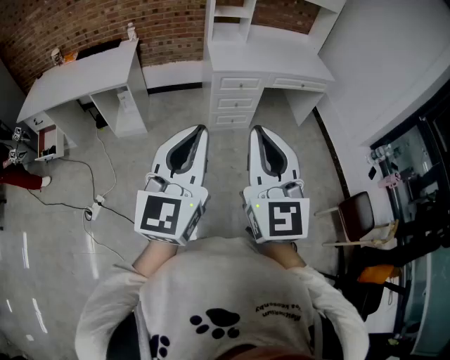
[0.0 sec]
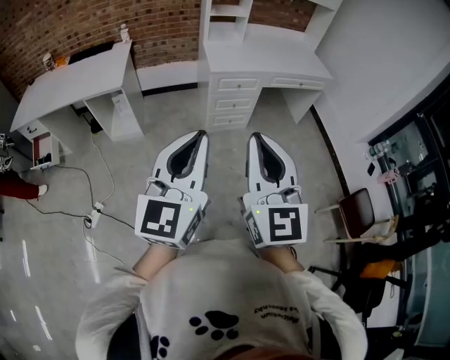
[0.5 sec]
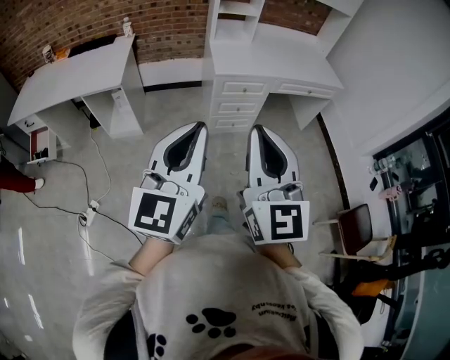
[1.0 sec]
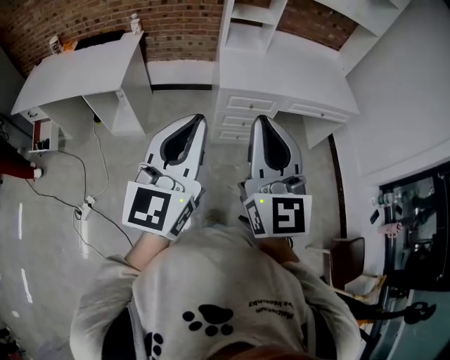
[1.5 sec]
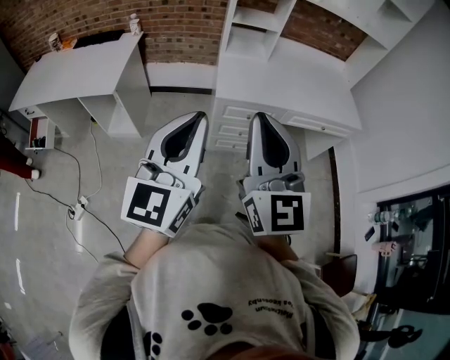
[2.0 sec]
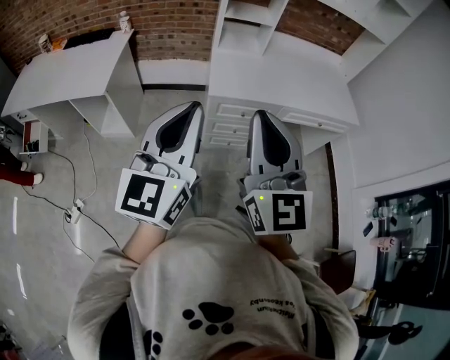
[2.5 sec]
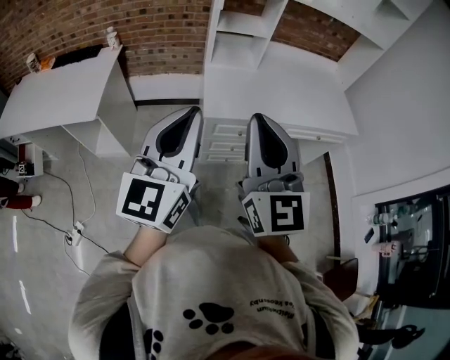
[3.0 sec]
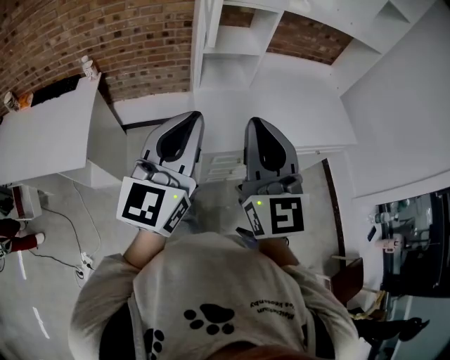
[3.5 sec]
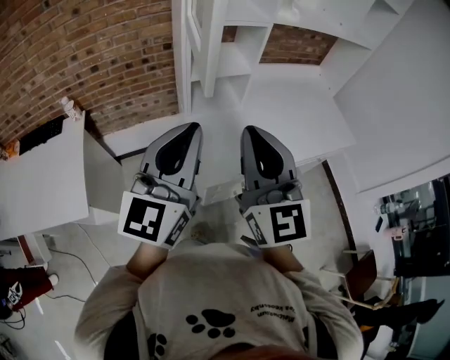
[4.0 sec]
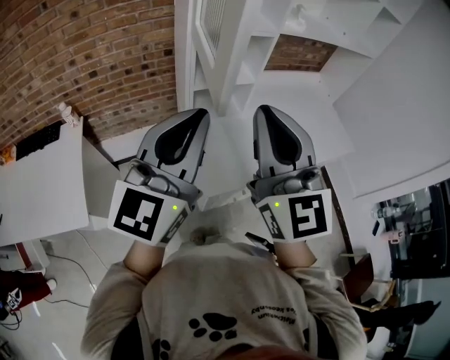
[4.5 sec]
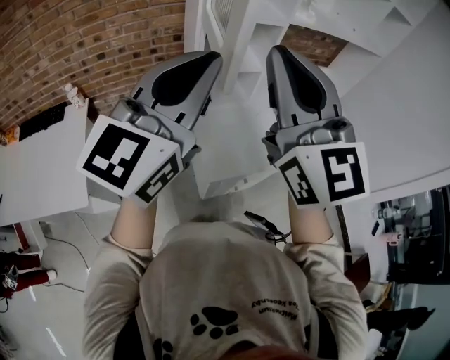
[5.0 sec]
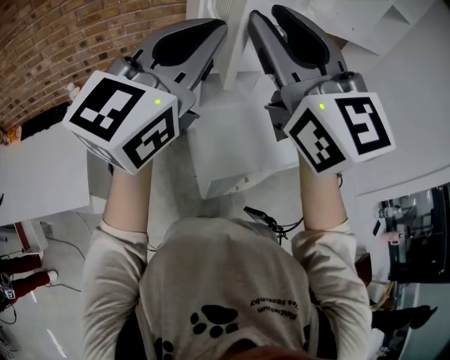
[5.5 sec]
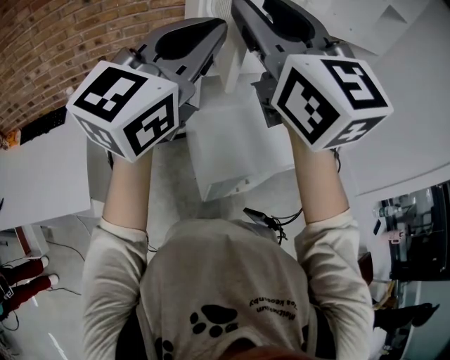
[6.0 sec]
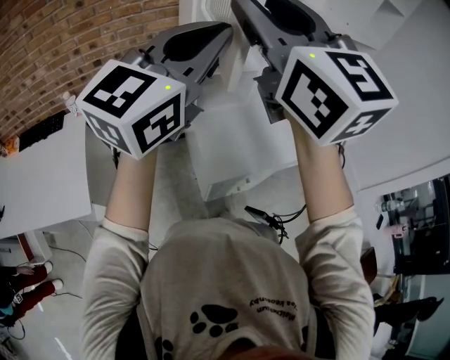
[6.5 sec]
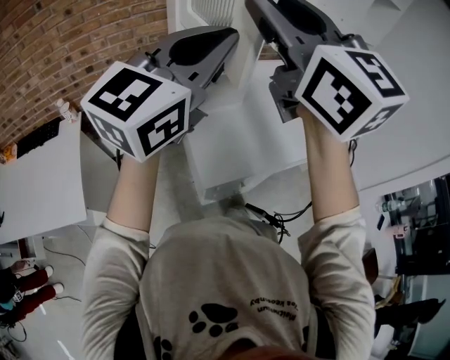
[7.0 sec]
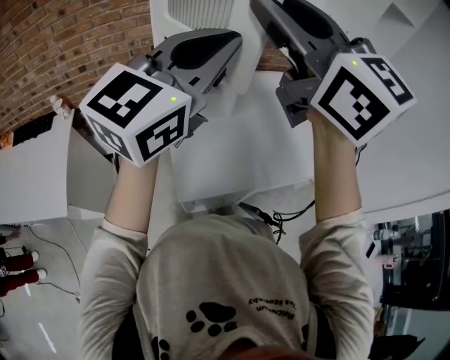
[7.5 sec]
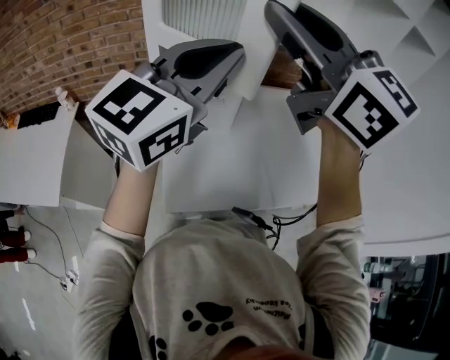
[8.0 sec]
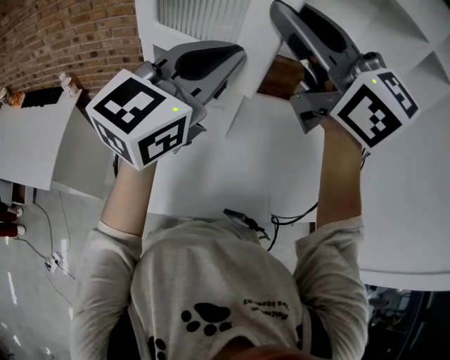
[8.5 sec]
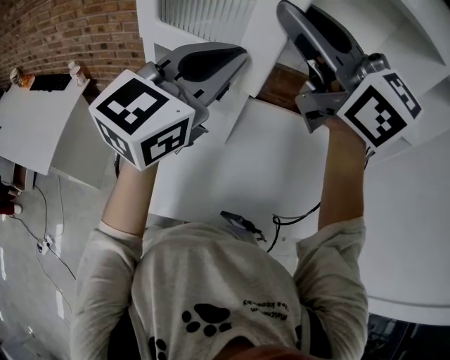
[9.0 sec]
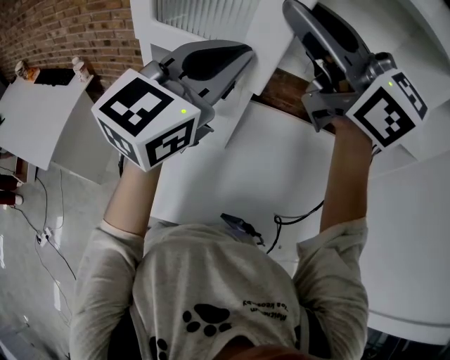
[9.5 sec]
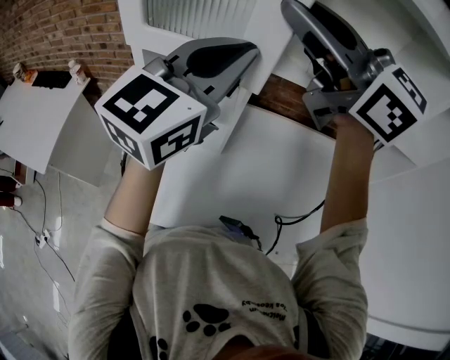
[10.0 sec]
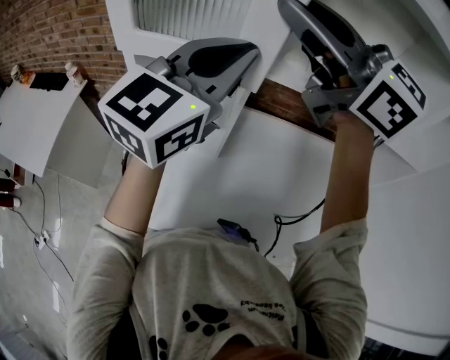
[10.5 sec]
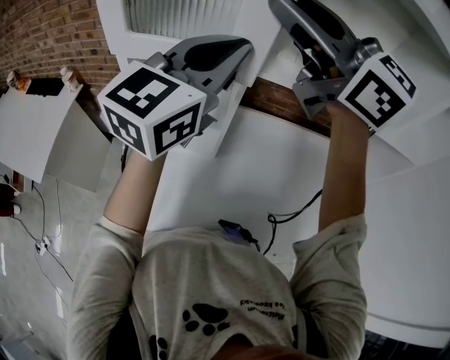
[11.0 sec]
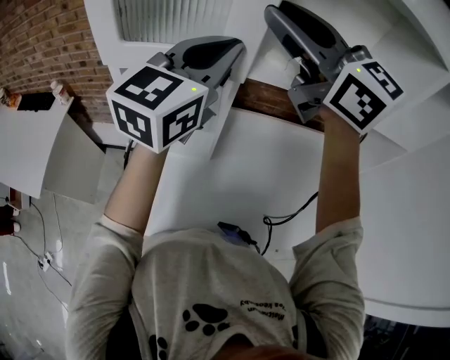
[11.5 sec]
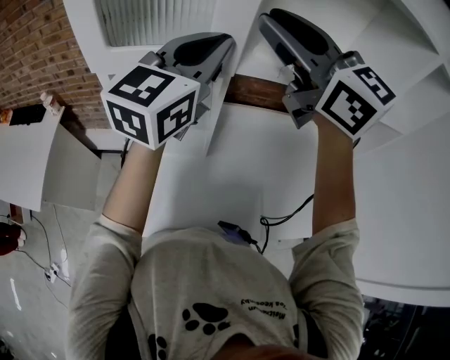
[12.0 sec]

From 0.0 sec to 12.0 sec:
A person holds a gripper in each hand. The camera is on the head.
From 0.0 sec to 2.0 sec: Both grippers move forward, some 35 cm.
From 2.0 sec to 4.0 sec: The grippers both shift forward by about 40 cm.
From 4.0 sec to 6.0 sec: The right gripper heads upward, to the left and forward, covering roughly 20 cm, and opens up, while the left gripper is displaced upward and forward by roughly 15 cm.
From 6.0 sec to 8.0 sec: The grippers both shift to the right and forward by some 25 cm. The right gripper turns by approximately 20 degrees.
From 8.0 sec to 10.0 sec: Both grippers travel together forward and to the right, approximately 15 cm. The right gripper swivels roughly 20 degrees.
From 10.0 sec to 12.0 sec: The left gripper travels forward by some 5 cm; the right gripper shifts by approximately 5 cm.

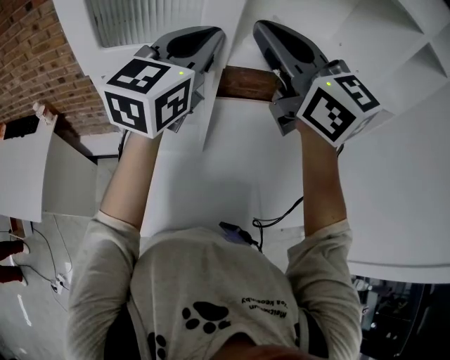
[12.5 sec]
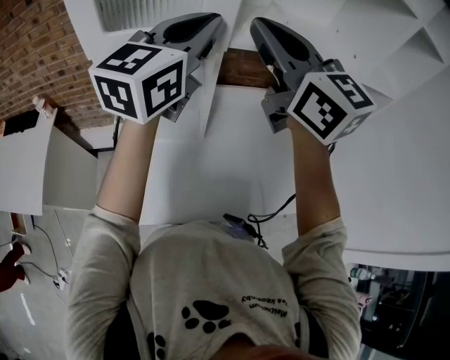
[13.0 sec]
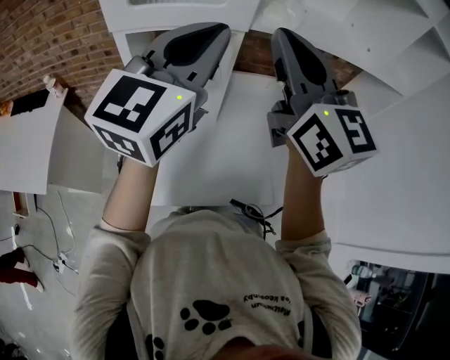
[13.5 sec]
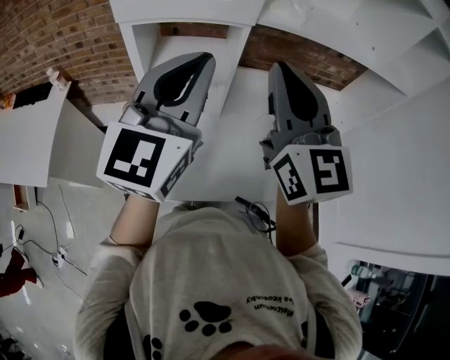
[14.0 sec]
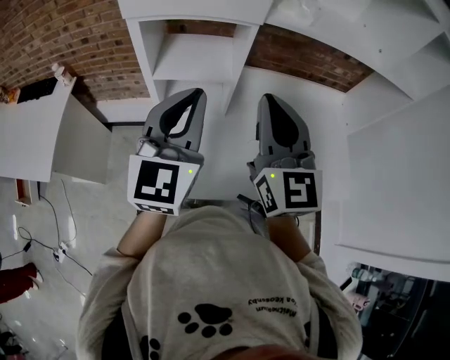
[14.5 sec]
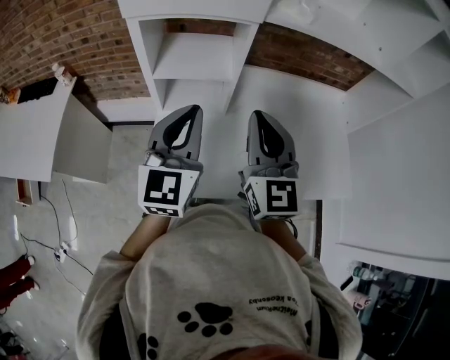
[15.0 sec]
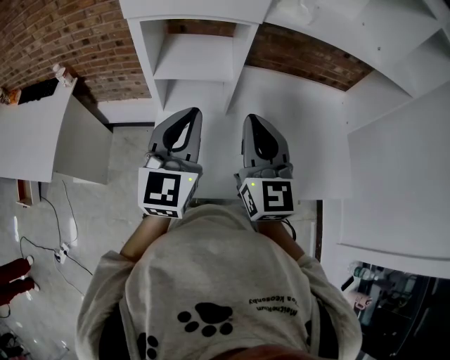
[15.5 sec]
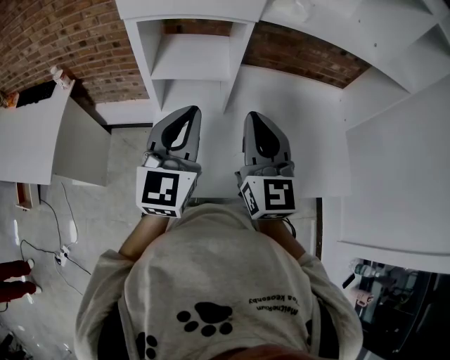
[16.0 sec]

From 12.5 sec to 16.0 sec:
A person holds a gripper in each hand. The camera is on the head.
From 12.5 sec to 14.5 sec: The left gripper moves backward and downward, roughly 20 cm, while the right gripper goes some 20 cm downward and backward, and swivels about 20 degrees.
From 14.5 sec to 16.0 sec: The right gripper travels downward by approximately 5 cm. Meanwhile the left gripper ends up approximately 5 cm from where it was.

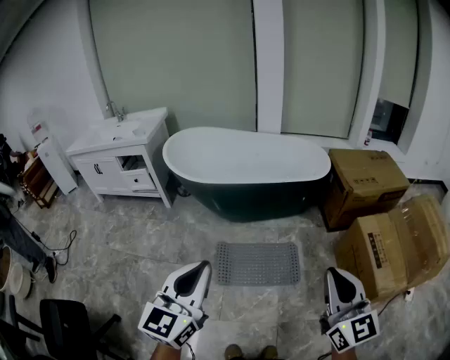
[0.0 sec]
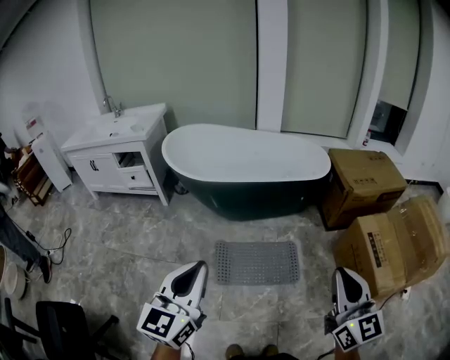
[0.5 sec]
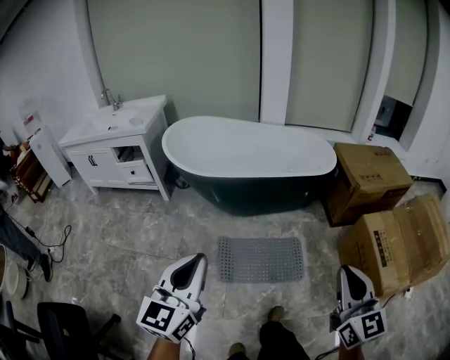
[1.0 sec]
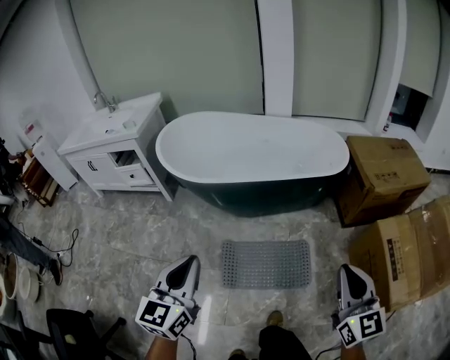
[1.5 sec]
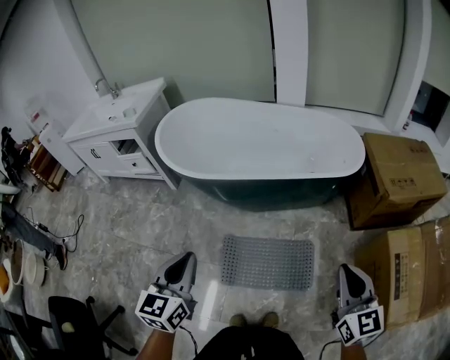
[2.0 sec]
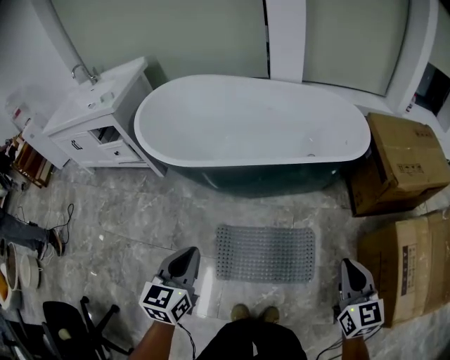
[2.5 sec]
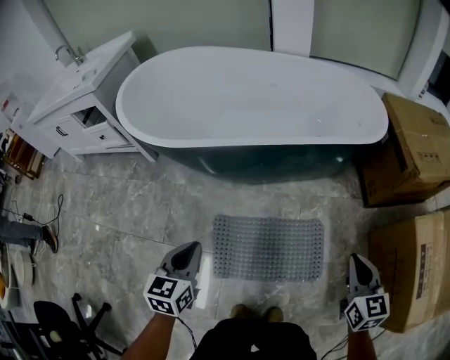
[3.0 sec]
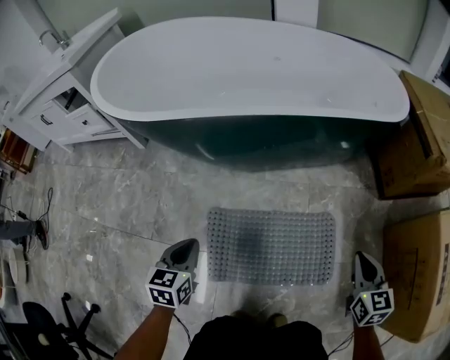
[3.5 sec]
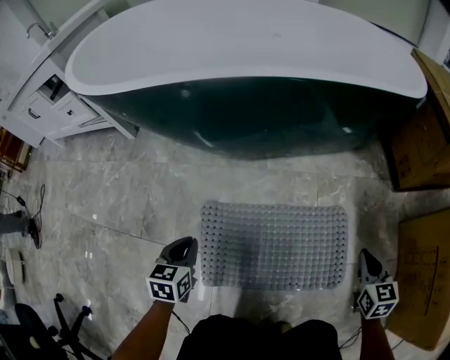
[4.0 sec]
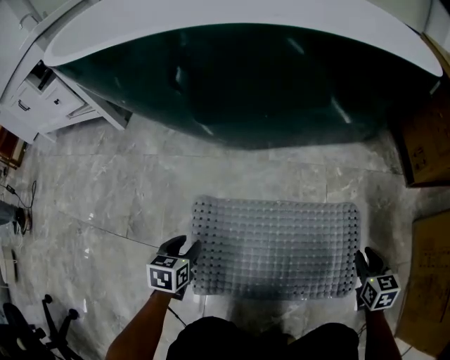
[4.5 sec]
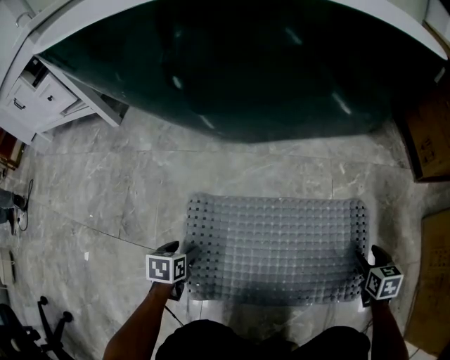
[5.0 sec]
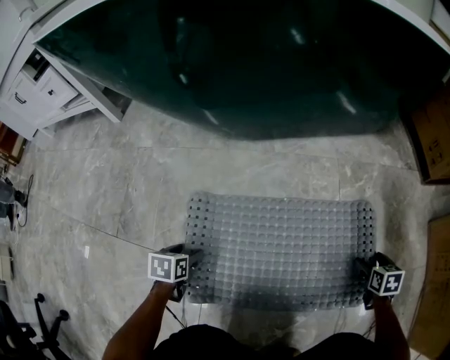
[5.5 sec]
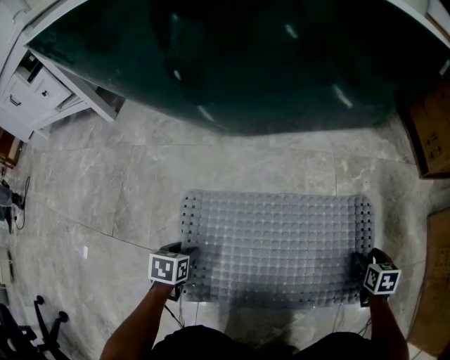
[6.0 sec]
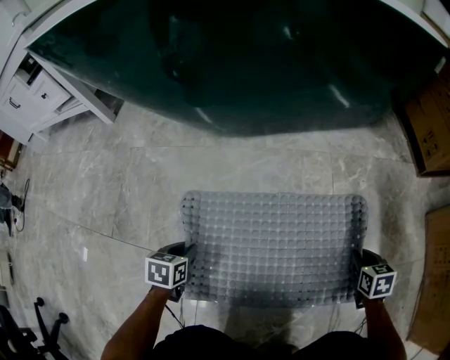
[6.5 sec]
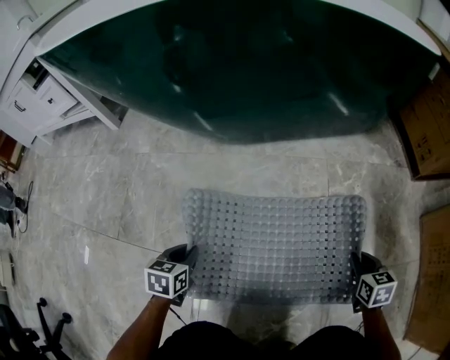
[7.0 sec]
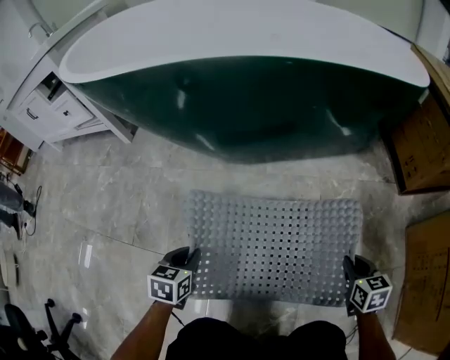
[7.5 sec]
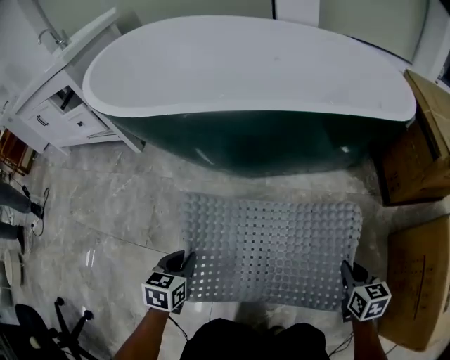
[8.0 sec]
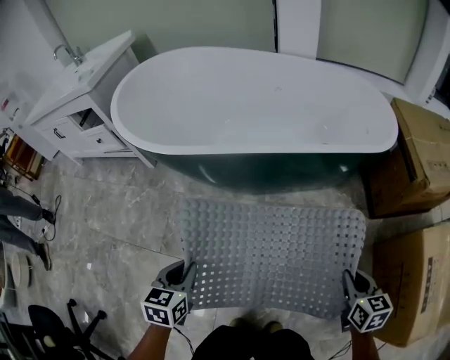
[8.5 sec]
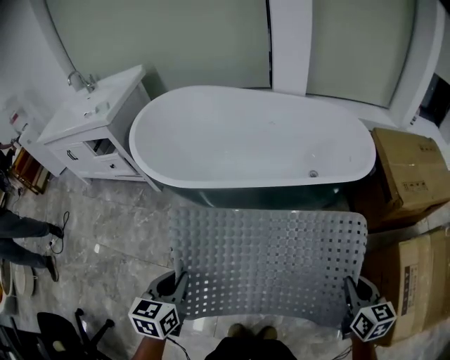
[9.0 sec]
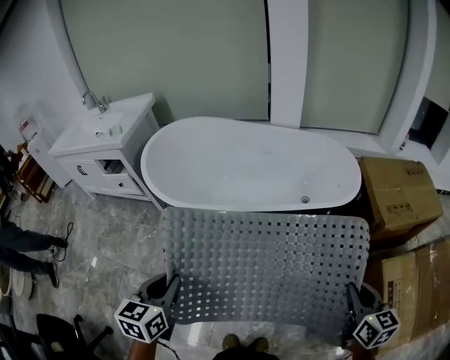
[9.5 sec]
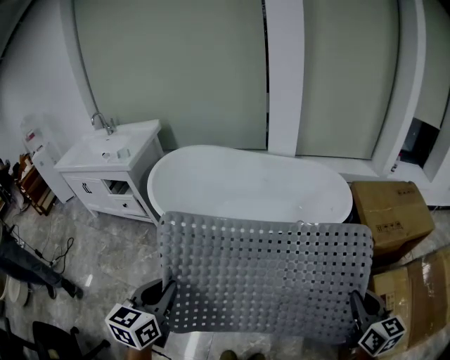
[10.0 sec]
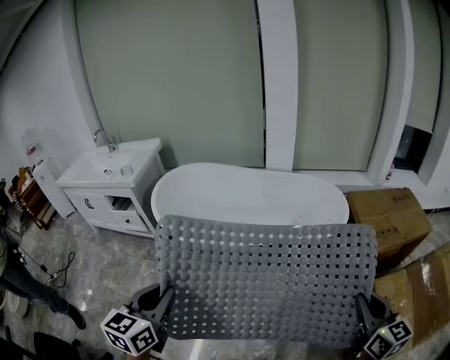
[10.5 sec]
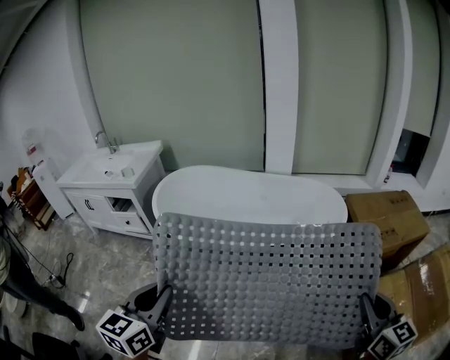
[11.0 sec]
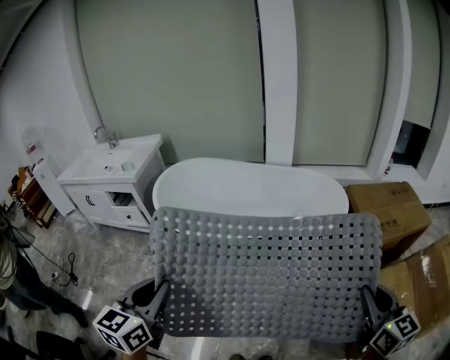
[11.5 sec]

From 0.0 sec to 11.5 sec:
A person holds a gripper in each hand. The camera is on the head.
From 0.0 sec to 2.0 sec: The grippers both shift forward and downward by roughly 30 cm. The left gripper changes its angle by about 20 degrees.
From 2.0 sec to 4.0 sec: Both grippers move downward, approximately 60 cm. The left gripper turns by about 30 degrees. The right gripper turns by about 30 degrees.
From 4.0 sec to 6.0 sec: Both grippers move downward, roughly 30 cm. The right gripper rotates roughly 20 degrees, and opens its fingers; the left gripper rotates roughly 20 degrees, and opens up.
From 6.0 sec to 7.5 sec: The right gripper heads upward and to the left, covering approximately 20 cm, and closes. The left gripper is displaced upward by roughly 20 cm, and closes.
From 7.5 sec to 9.5 sec: Both grippers move upward, approximately 70 cm. The left gripper turns by approximately 20 degrees. The right gripper turns by roughly 20 degrees.
From 9.5 sec to 11.5 sec: The left gripper is displaced upward by about 15 cm, while the right gripper shifts roughly 20 cm upward and backward.
